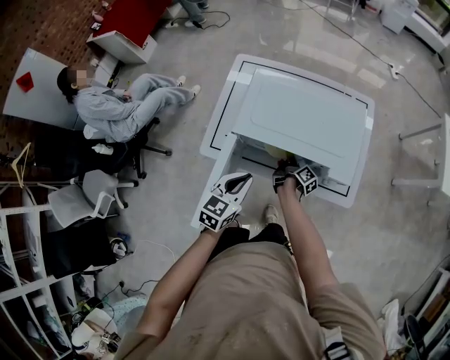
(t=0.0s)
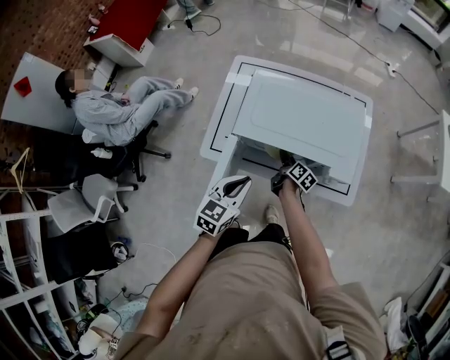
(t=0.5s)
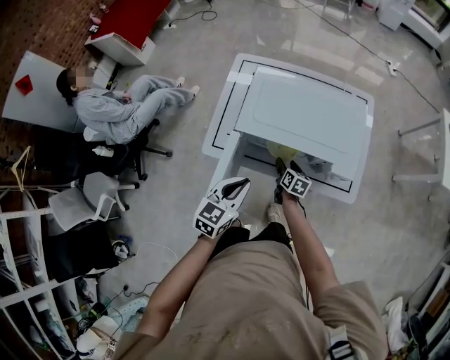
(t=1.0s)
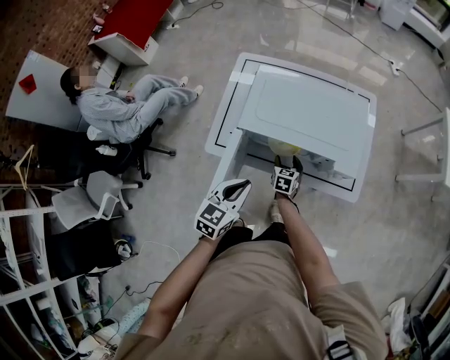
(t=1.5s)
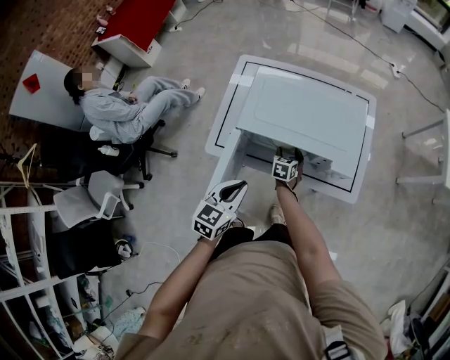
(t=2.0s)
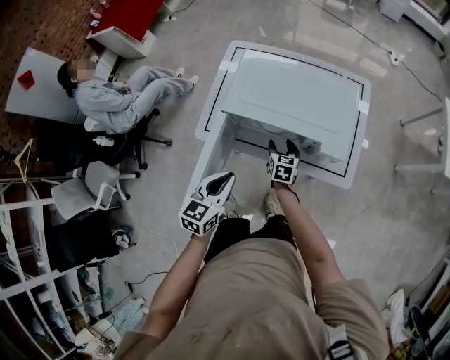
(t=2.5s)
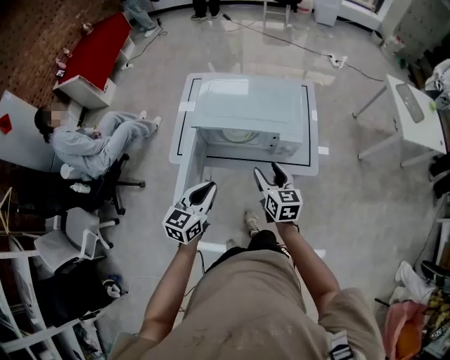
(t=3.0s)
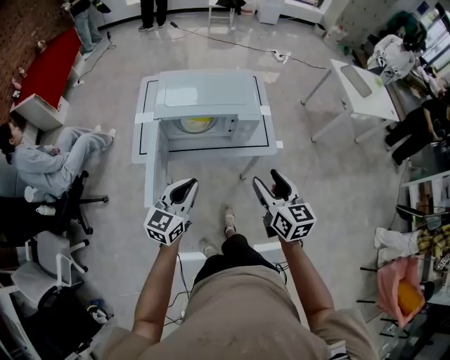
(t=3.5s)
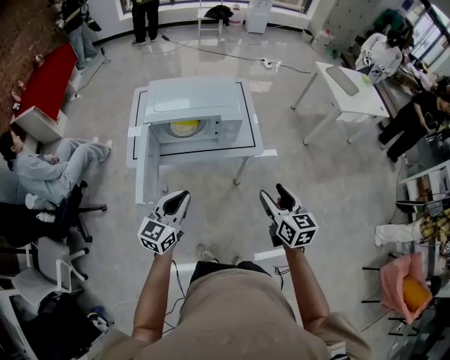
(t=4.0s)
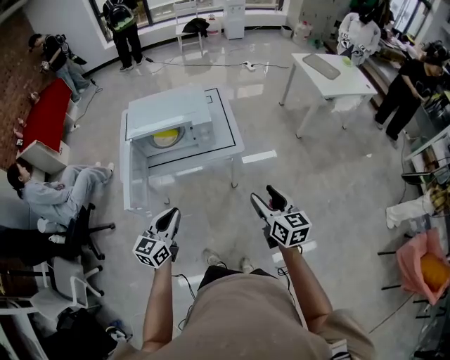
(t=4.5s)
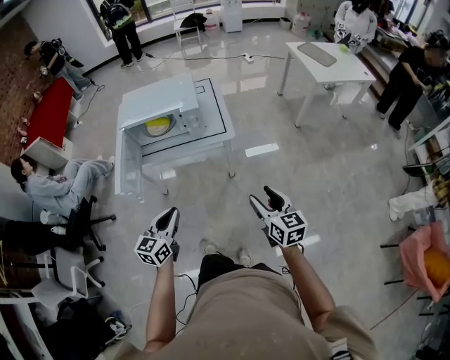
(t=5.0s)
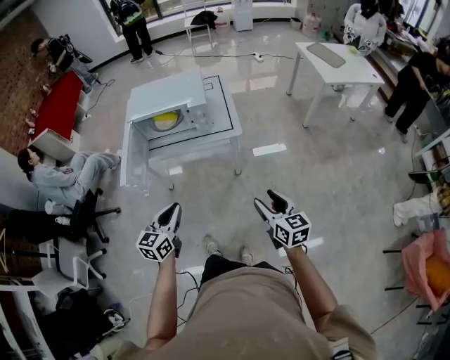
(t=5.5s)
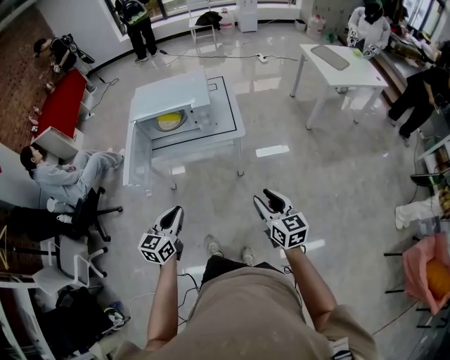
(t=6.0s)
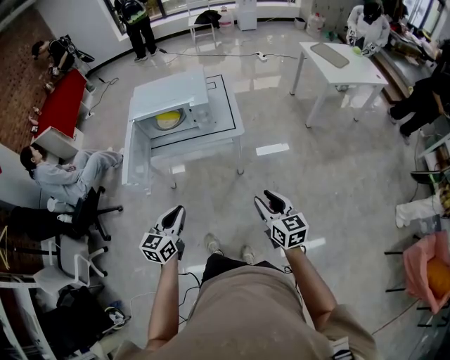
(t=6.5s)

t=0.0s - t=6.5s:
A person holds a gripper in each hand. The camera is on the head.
t=0.0s - t=2.0s: The left gripper ends up roughly 5 cm from where it was, while the right gripper rotates around the line of its fingers by about 70 degrees, counterclockwise from behind, and opens up.
t=2.0s - t=4.5s: The left gripper heads backward and to the right, covering some 30 cm, and swivels some 20 degrees; the right gripper goes some 70 cm backward, to the right and upward, and angles its fingers upward, by approximately 30 degrees.
t=4.5s - t=6.5s: The left gripper heads backward and to the right, covering approximately 10 cm. The right gripper heads backward, downward and to the right, covering roughly 10 cm, and closes up.

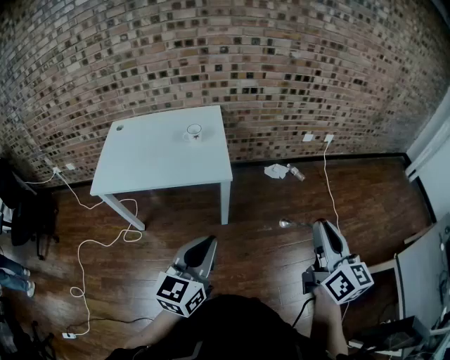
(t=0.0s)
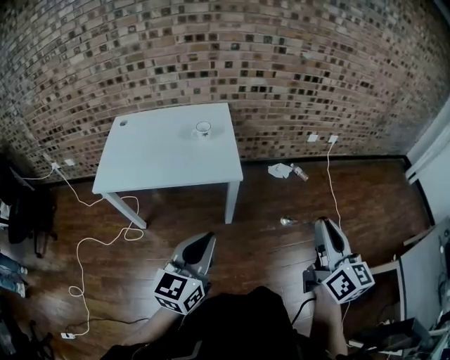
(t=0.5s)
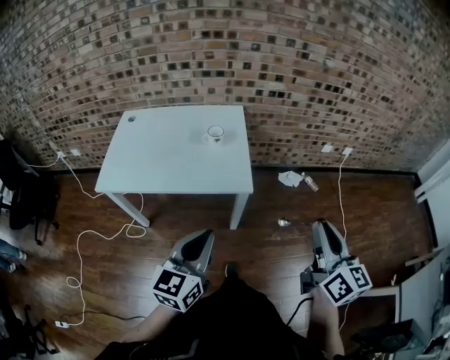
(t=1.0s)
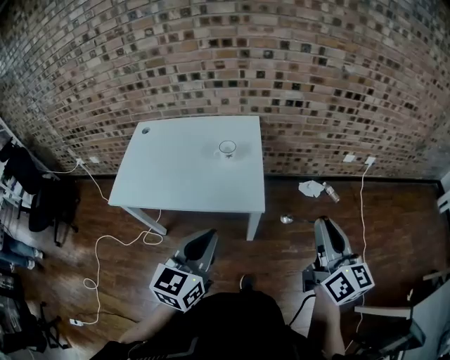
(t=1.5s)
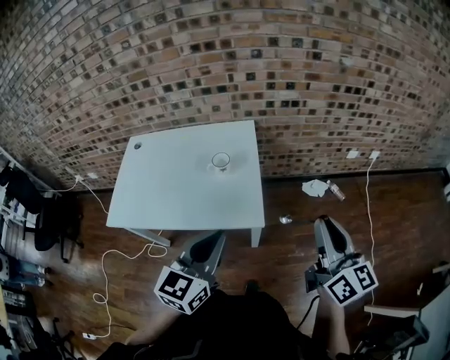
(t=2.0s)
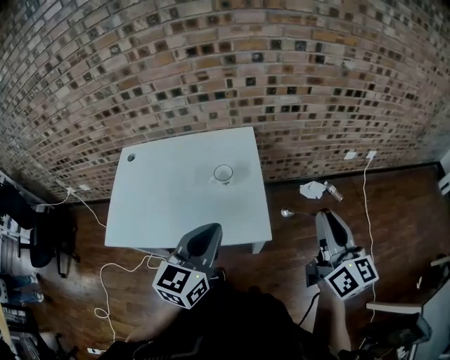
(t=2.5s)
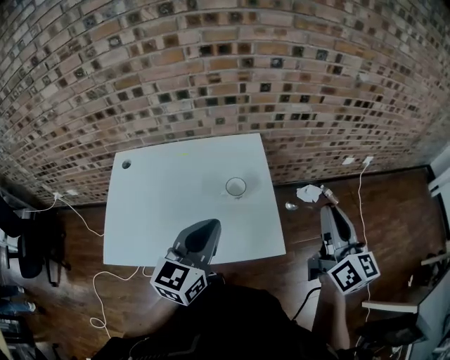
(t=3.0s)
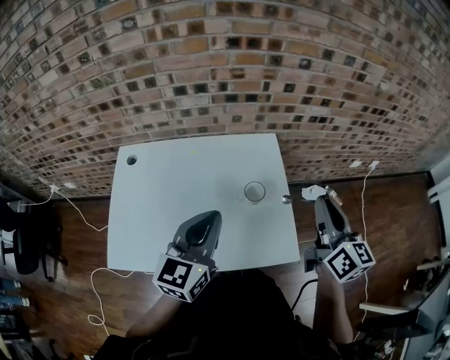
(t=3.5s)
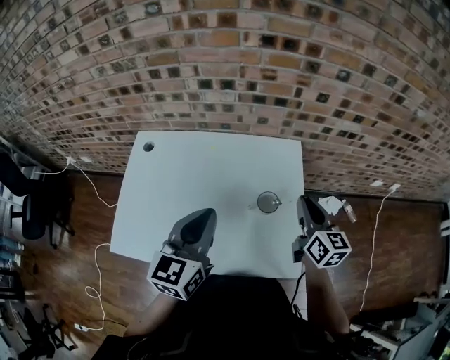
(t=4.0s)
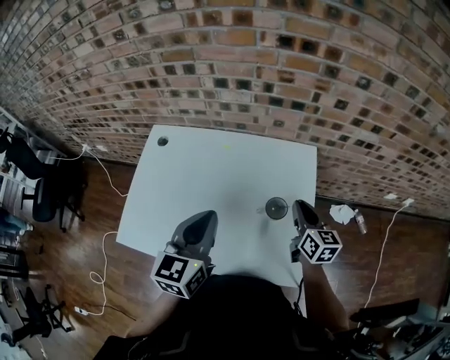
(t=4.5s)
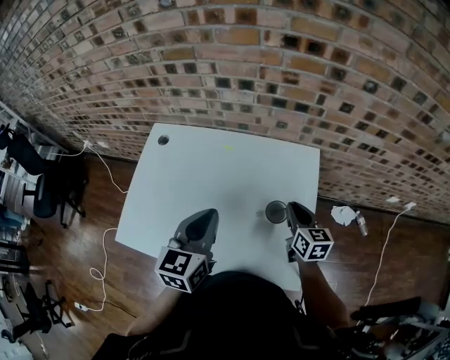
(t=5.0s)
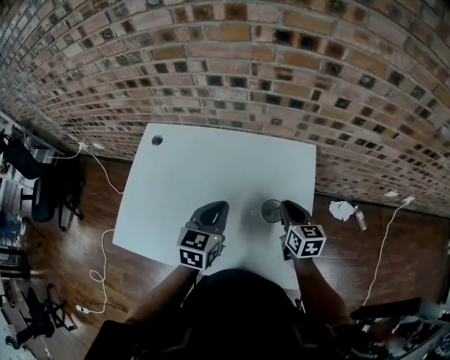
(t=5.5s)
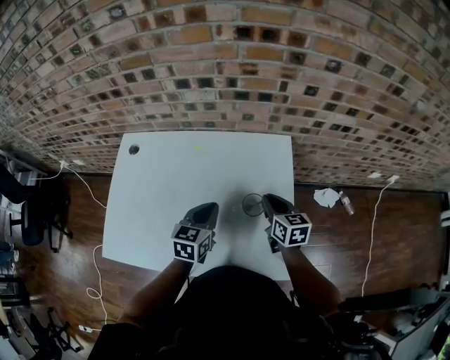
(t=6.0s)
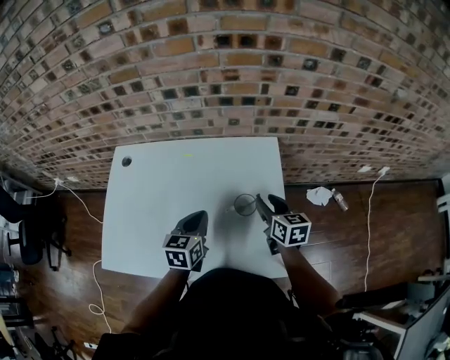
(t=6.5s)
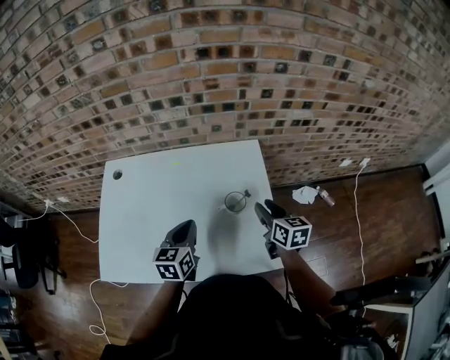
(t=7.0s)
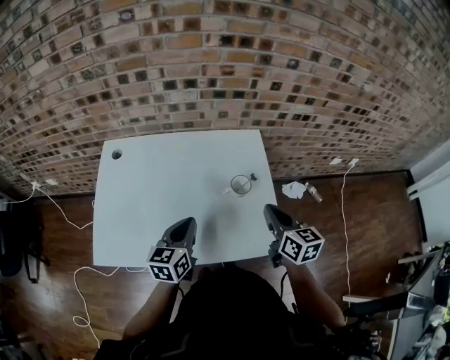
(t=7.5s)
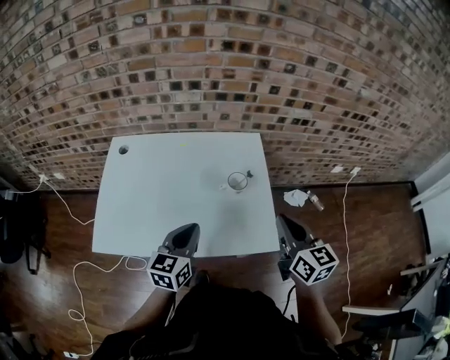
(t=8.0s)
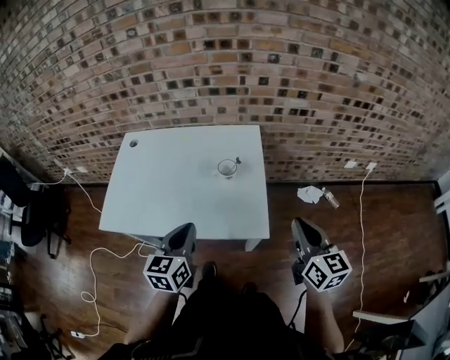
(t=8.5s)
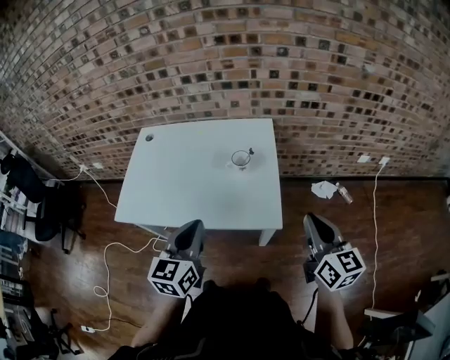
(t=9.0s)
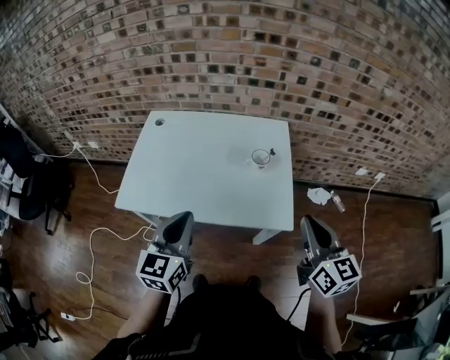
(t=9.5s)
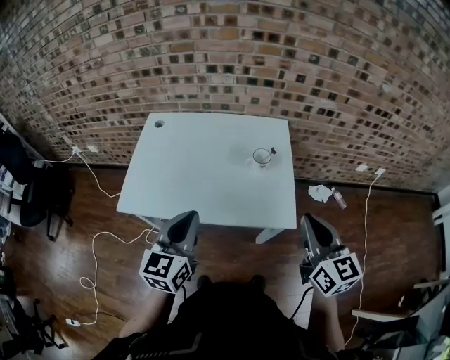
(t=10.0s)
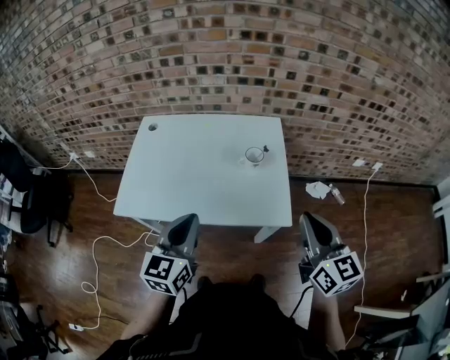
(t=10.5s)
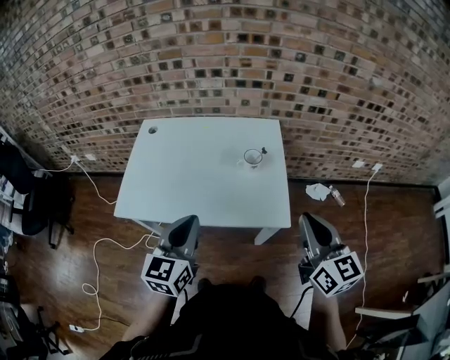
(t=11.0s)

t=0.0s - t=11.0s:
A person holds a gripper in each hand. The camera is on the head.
t=0.0s - t=2.0s: Both grippers move forward, roughly 25 cm.
t=2.0s - t=3.5s: Both grippers move to the left and forward, about 30 cm.
t=3.5s - t=5.5s: The left gripper travels downward and forward by about 15 cm, and changes its angle by some 30 degrees; the right gripper travels downward and forward by some 30 cm, and turns by about 30 degrees.
t=5.5s - t=7.5s: The right gripper moves backward and upward, some 20 cm, and opens, then closes again. The left gripper travels backward by roughly 10 cm.
t=7.5s - t=9.0s: The left gripper travels backward, upward and to the right by some 25 cm; the right gripper moves backward, to the right and upward, approximately 25 cm.
t=9.0s - t=11.0s: The grippers both shift to the left by roughly 10 cm.

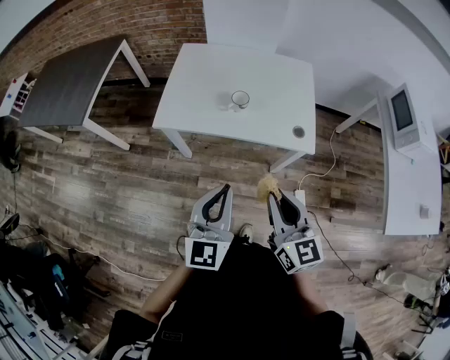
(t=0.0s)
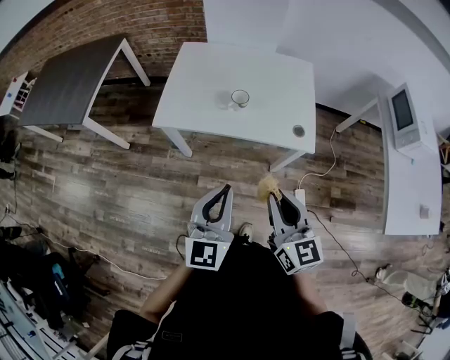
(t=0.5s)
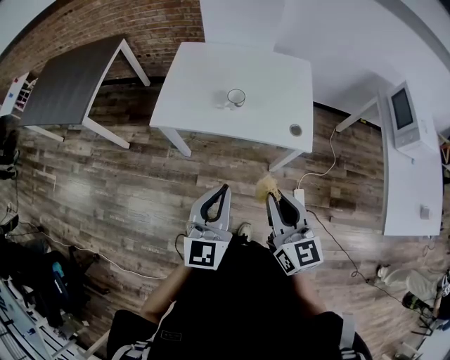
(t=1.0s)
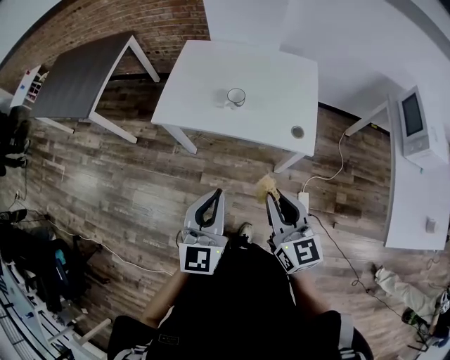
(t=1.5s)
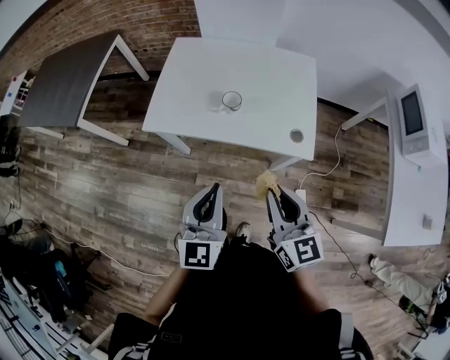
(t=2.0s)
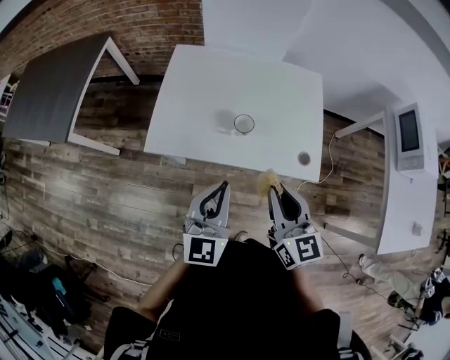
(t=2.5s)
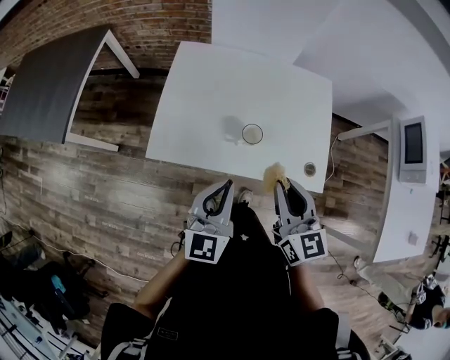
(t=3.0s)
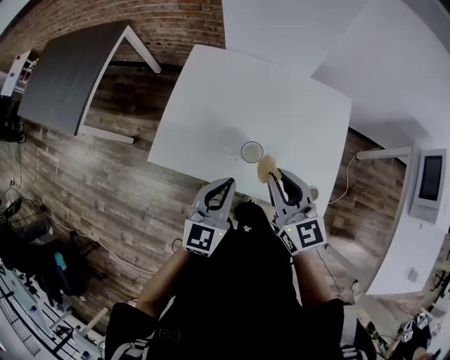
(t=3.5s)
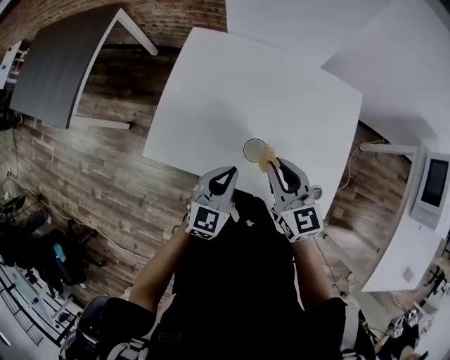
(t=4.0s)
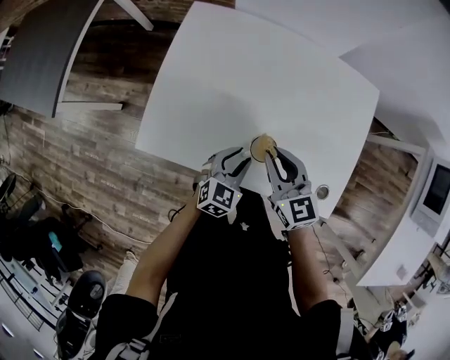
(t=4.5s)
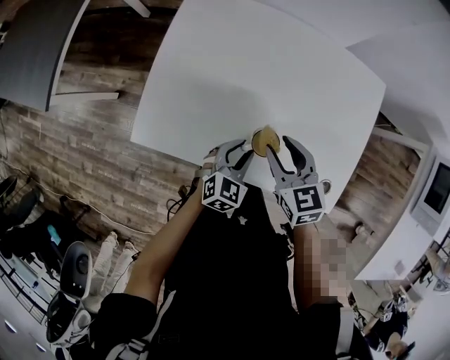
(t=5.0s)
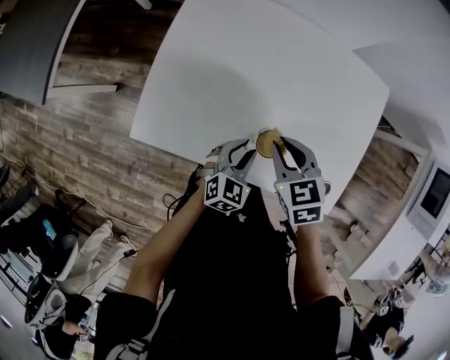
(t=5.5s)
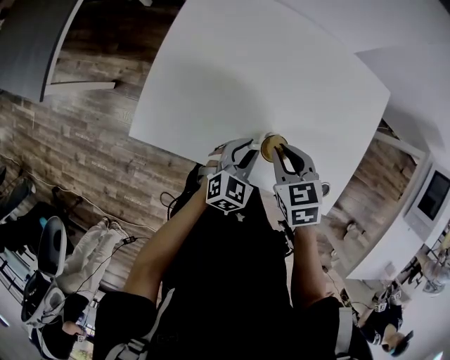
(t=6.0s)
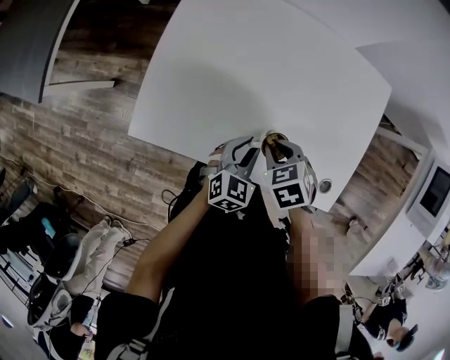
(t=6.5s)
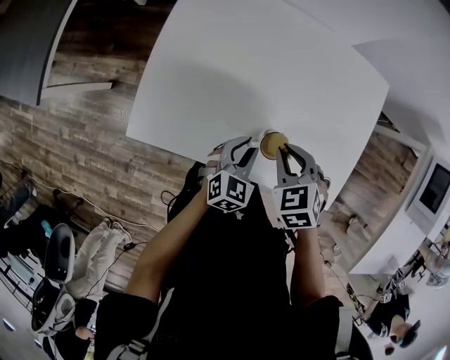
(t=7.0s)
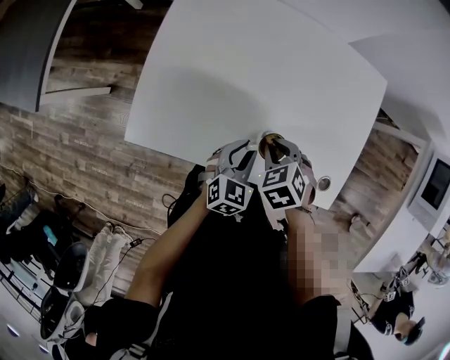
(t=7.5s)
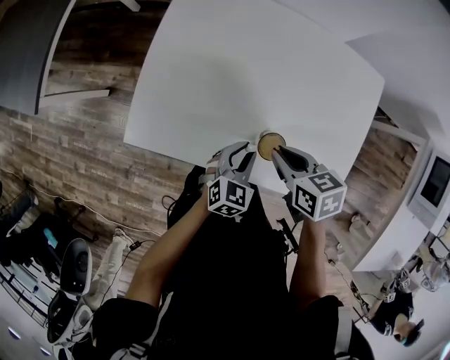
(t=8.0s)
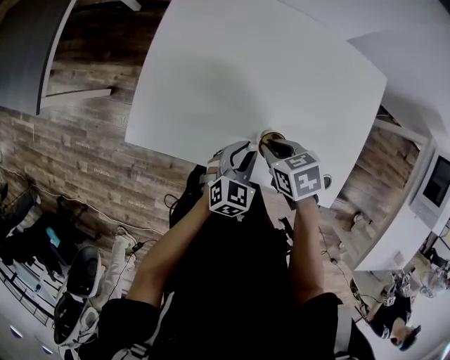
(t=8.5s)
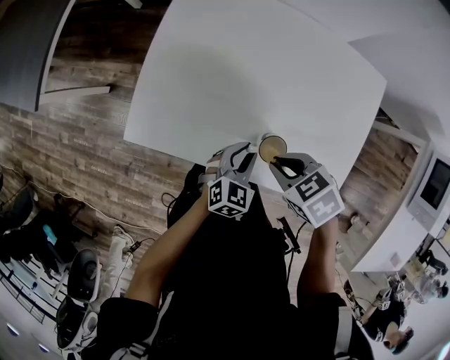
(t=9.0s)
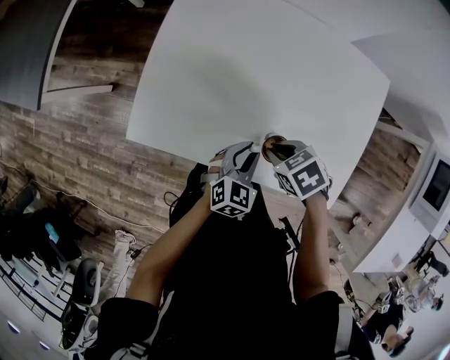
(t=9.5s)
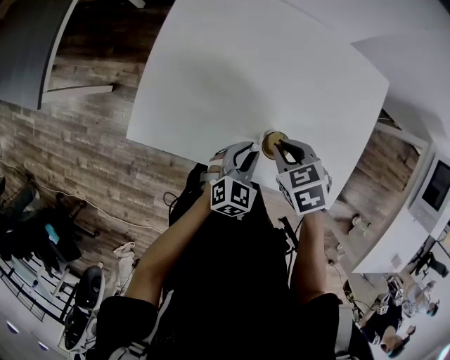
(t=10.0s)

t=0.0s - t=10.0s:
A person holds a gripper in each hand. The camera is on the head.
t=0.0s - t=2.0s: Both grippers move forward, some 5 cm.
t=2.0s - t=4.0s: The left gripper goes roughly 30 cm forward and downward, and turns by approximately 20 degrees; the right gripper heads forward, covering roughly 30 cm.
t=4.0s - t=6.0s: The two grippers go roughly 15 cm downward. The left gripper opens its fingers; the right gripper angles its fingers downward, by some 40 degrees, and opens and closes again.
t=6.0s - t=8.0s: The right gripper swings up and down, approximately 5 cm each way, with 3 reversals, and swivels about 20 degrees.
t=8.0s - t=10.0s: The right gripper goes up and down, approximately 5 cm each way, reversing 2 times, and turns by about 20 degrees.
